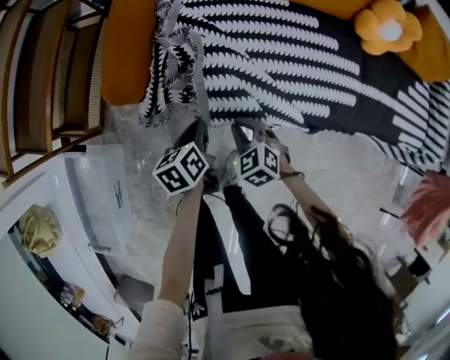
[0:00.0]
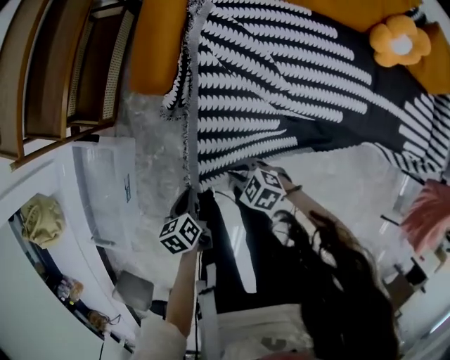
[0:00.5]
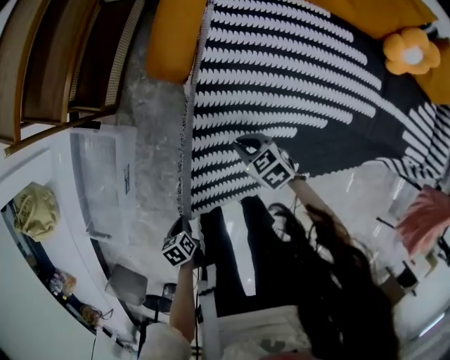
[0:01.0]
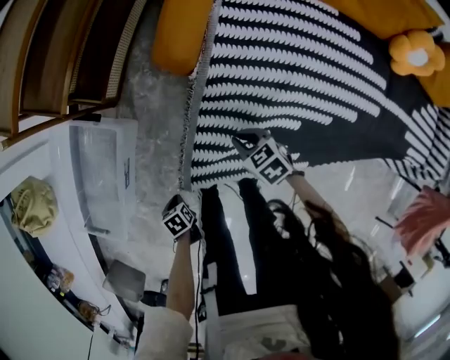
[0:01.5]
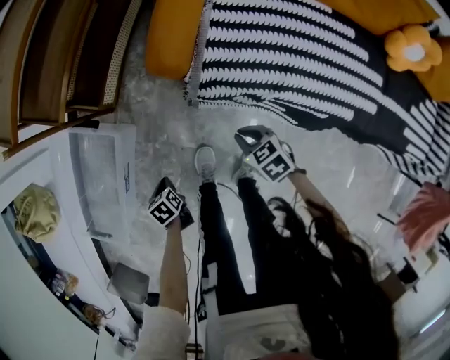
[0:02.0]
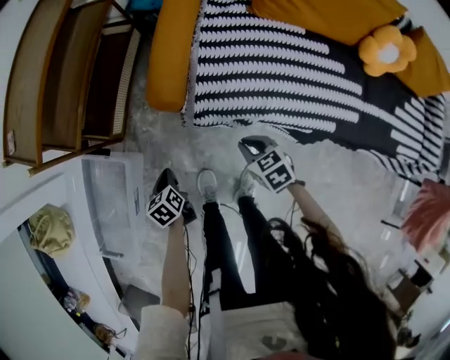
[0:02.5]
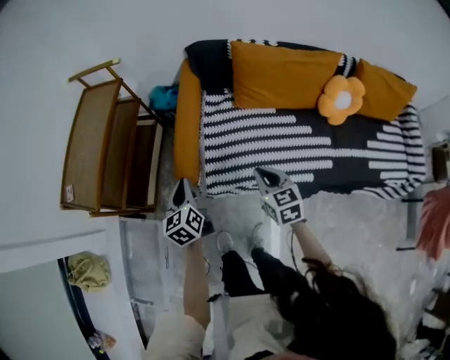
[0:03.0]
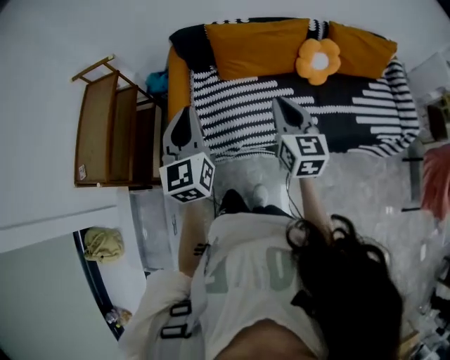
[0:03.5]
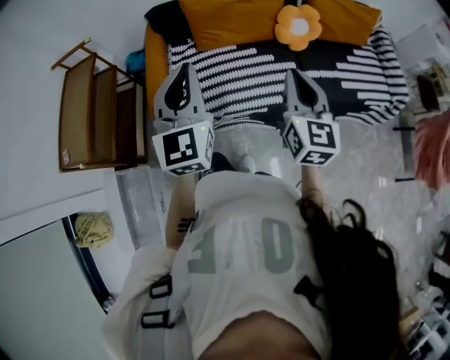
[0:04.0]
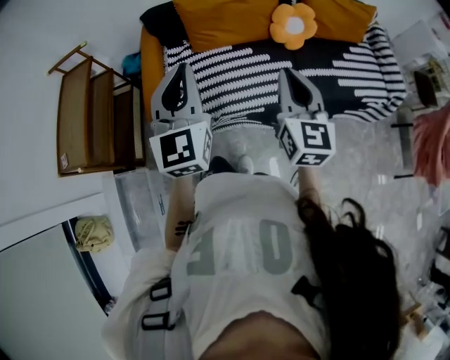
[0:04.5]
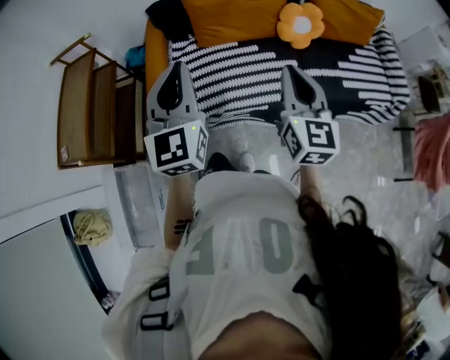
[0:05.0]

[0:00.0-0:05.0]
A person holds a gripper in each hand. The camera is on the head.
0:00.0 to 0:02.5: The right gripper travels upward by some 10 cm, while the left gripper travels downward and back again, about 10 cm each way, and changes its angle by about 20 degrees.
0:02.5 to 0:05.0: The two grippers go approximately 60 cm upward. The left gripper tilts its fingers roughly 60 degrees upward. The right gripper tips its fingers upward by some 50 degrees.

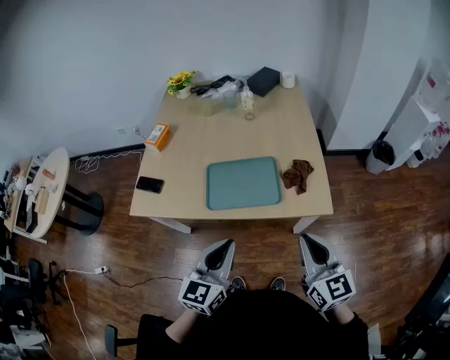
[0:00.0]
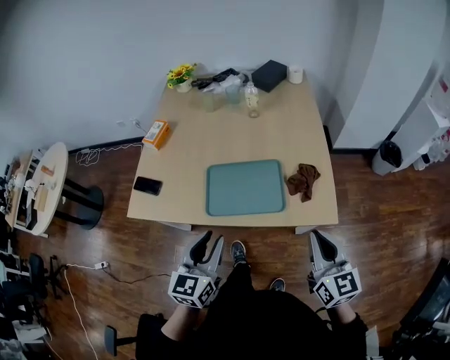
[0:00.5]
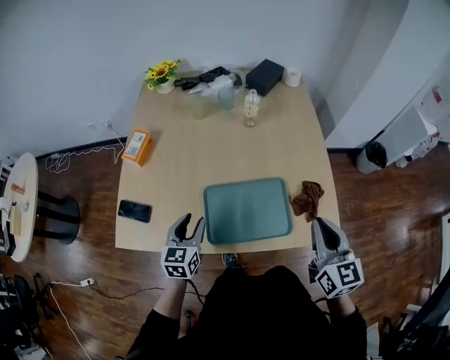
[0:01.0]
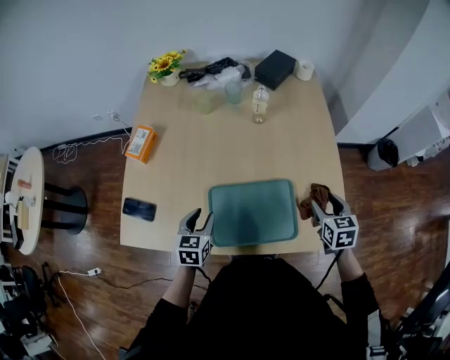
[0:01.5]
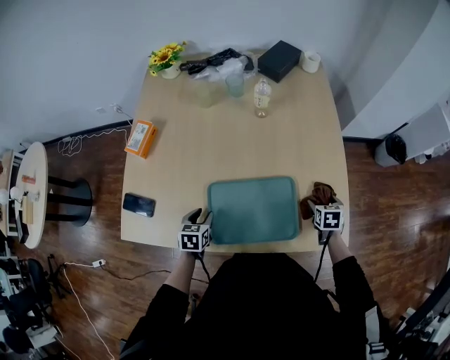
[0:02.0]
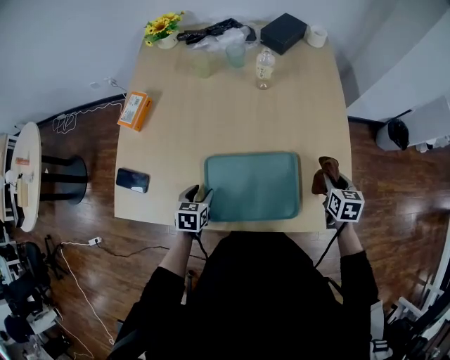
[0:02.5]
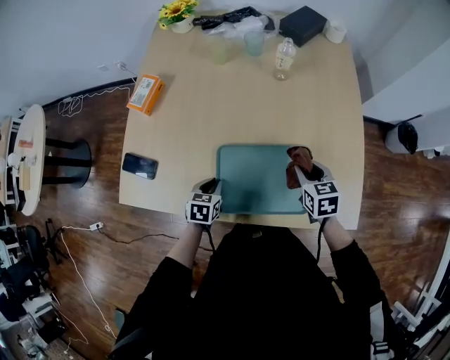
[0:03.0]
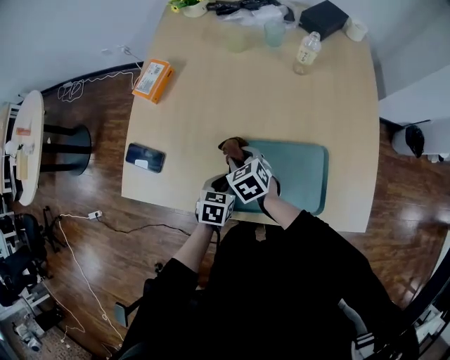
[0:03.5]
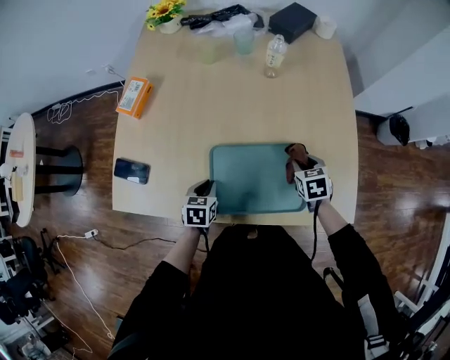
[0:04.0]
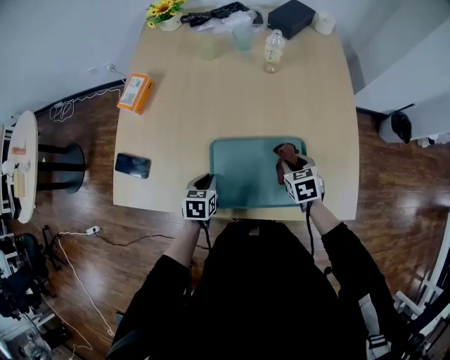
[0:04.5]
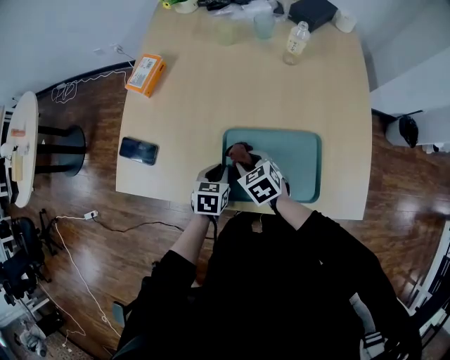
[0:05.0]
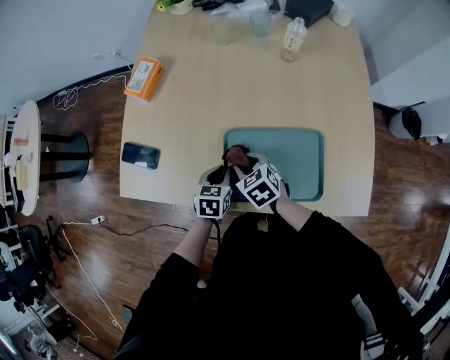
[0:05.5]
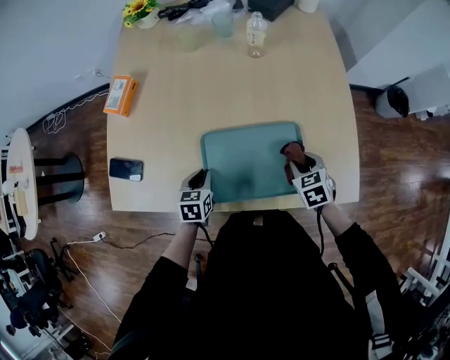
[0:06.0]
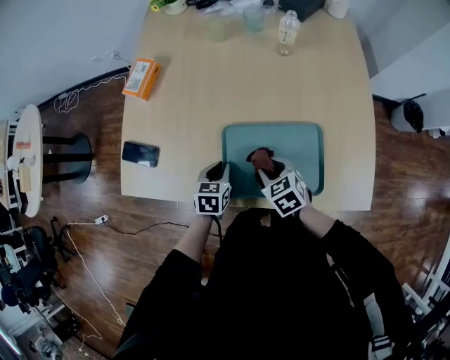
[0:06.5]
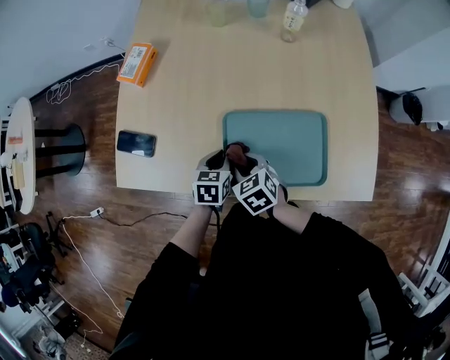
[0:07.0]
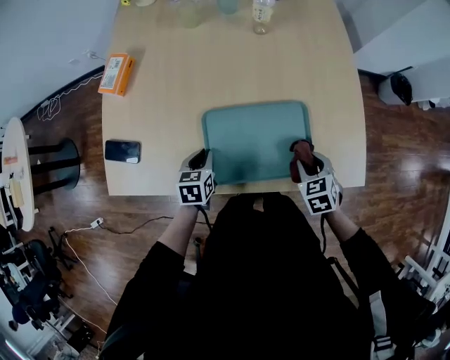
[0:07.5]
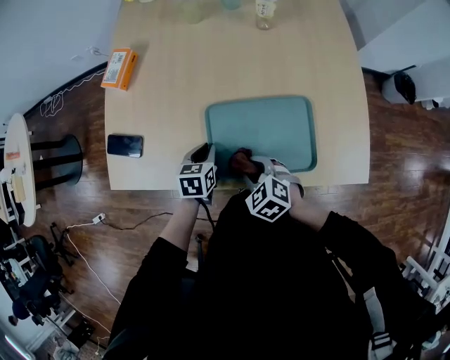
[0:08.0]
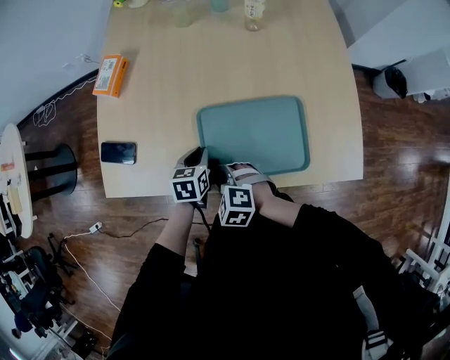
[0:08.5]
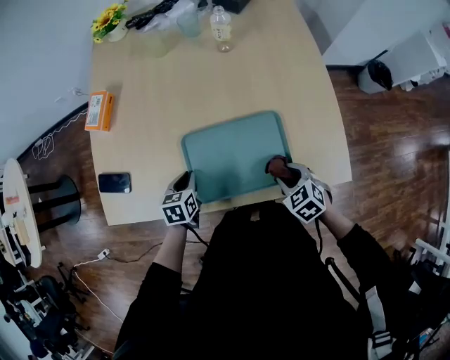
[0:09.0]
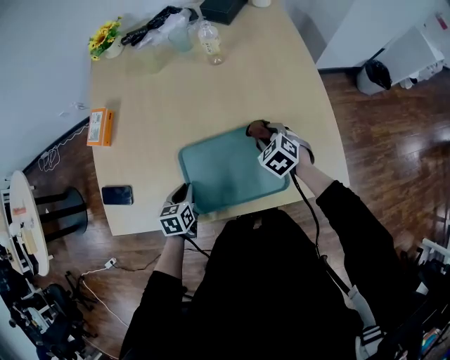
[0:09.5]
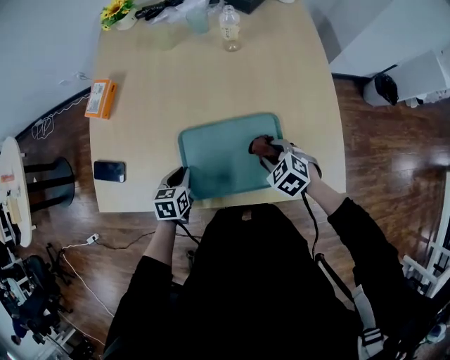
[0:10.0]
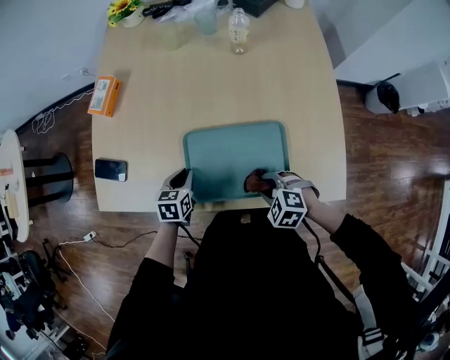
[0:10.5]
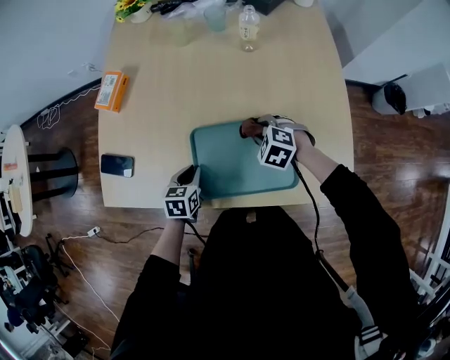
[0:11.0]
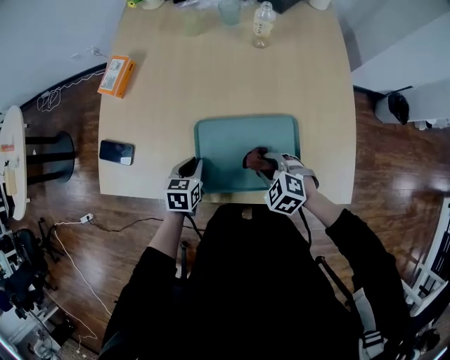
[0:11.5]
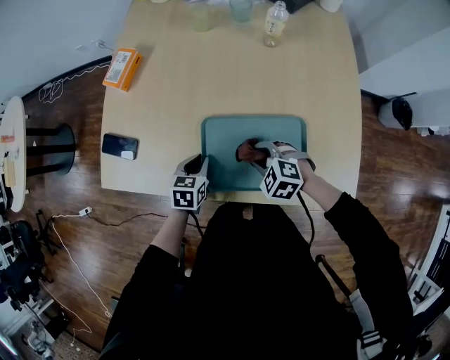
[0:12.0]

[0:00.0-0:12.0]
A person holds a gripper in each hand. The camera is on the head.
0:00.0 to 0:02.0: The left gripper goes some 50 cm forward, downward and to the left, points its fingers some 40 degrees further downward, and opens, while the right gripper travels forward and downward by some 50 cm, tilts its fingers approximately 50 degrees downward, and opens.
0:02.0 to 0:04.0: The left gripper closes its fingers, while the right gripper goes to the left and returns, roughly 40 cm each way, and closes its fingers.
0:04.0 to 0:06.0: The right gripper moves backward, approximately 5 cm, and goes to the left and returns, about 25 cm each way.
0:06.0 to 0:08.0: The right gripper swings left and right, about 25 cm each way, with 2 reversals, and rotates roughly 30 degrees.
0:08.0 to 0:10.0: The right gripper is displaced to the right and forward by roughly 20 cm.
0:10.0 to 0:12.0: The right gripper goes forward and backward, about 15 cm each way, reversing 2 times, and rotates roughly 30 degrees.

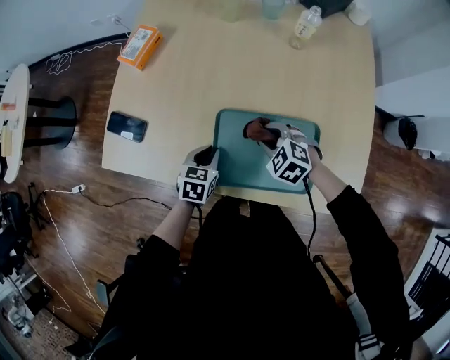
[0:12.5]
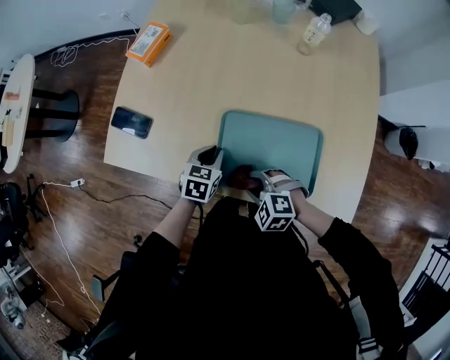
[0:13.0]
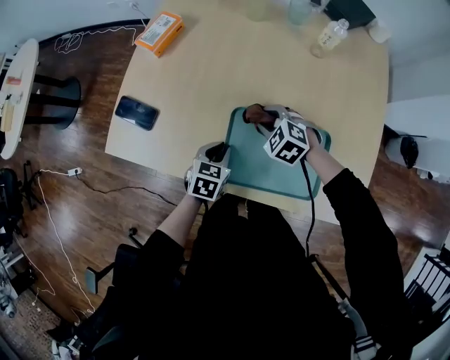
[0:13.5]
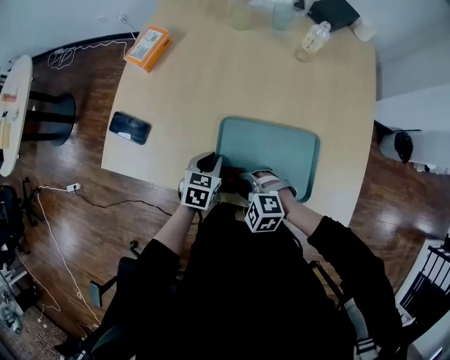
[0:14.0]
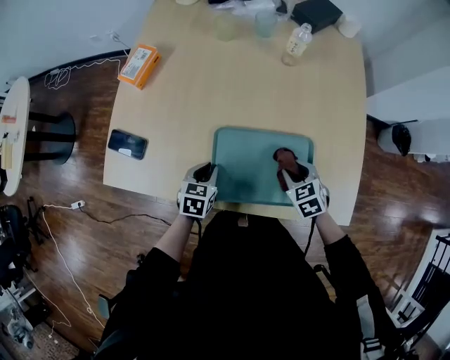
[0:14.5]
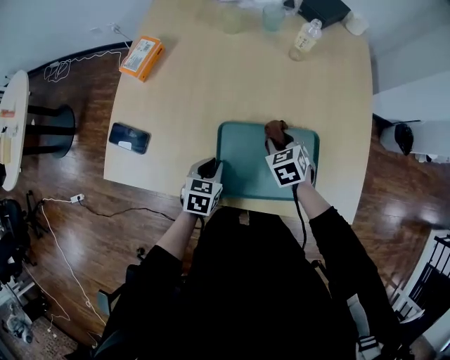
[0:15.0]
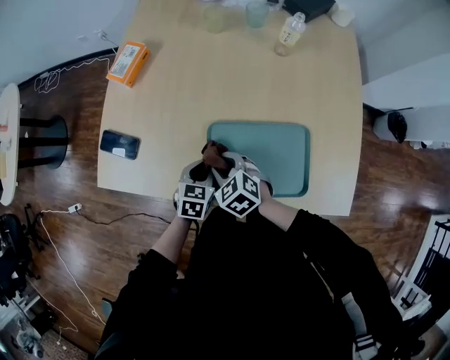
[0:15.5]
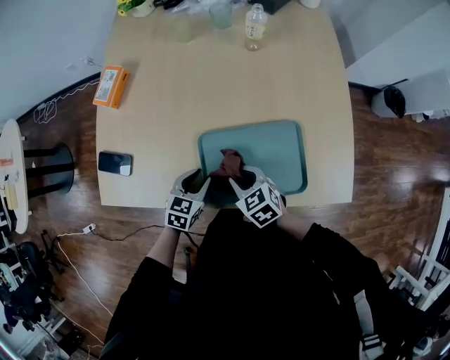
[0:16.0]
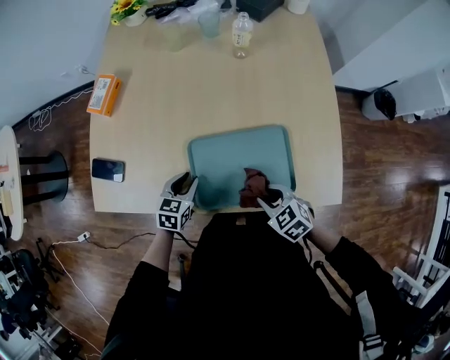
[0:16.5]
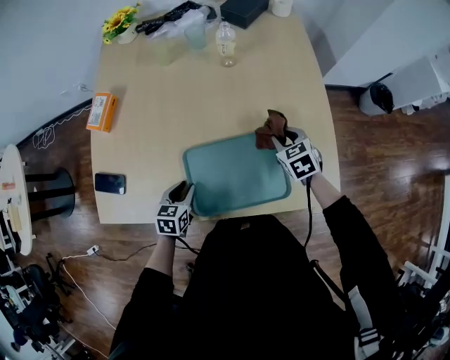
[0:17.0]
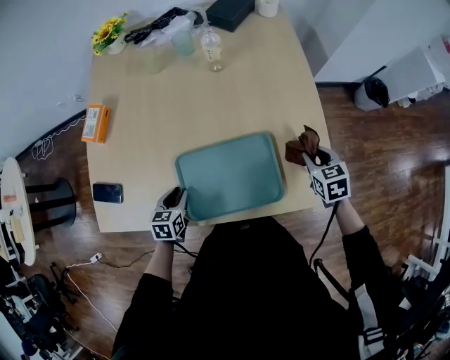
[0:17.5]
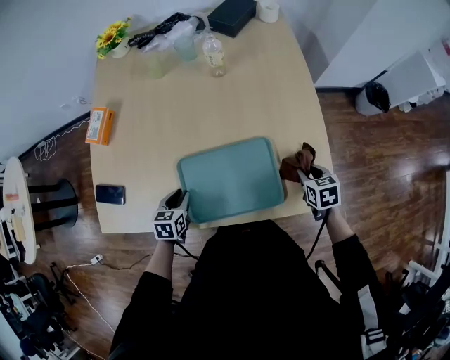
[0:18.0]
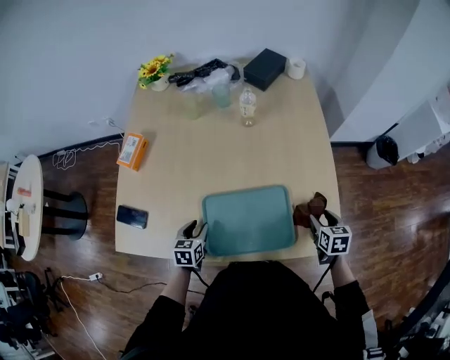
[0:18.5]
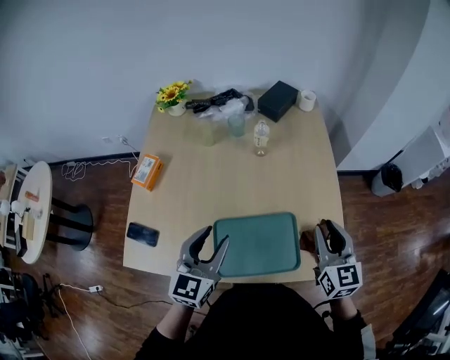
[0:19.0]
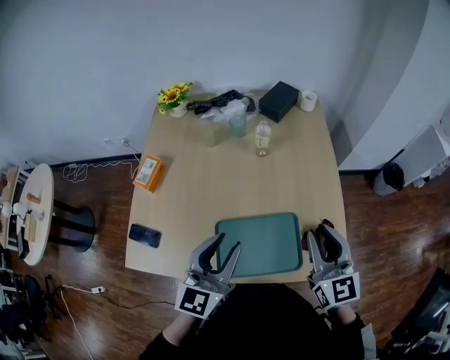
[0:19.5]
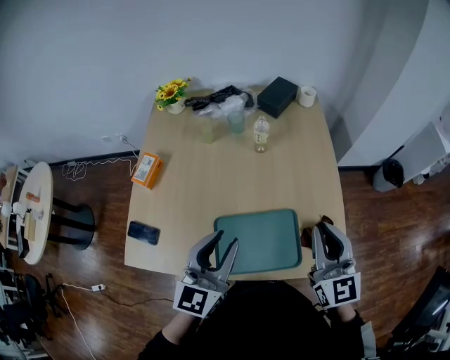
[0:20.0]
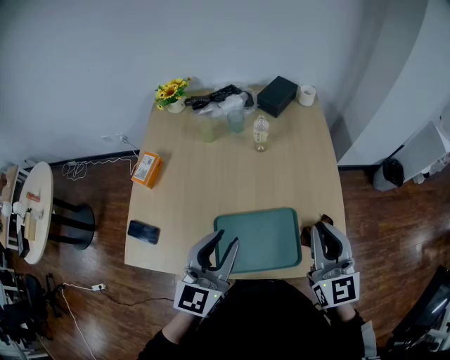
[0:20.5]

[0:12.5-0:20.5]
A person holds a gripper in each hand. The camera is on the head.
0:12.5 to 0:14.5: The right gripper moves left and right over about 20 cm, changing direction 3 times, and turns by some 30 degrees.
0:14.5 to 0:16.5: The right gripper heads backward, covering some 10 cm, and goes to the left and returns, some 25 cm each way.
0:16.5 to 0:18.5: The right gripper is displaced to the right and forward by approximately 25 cm, twists roughly 40 degrees clockwise, seen from behind, and opens up.
0:18.5 to 0:20.5: The right gripper travels upward and to the left by approximately 35 cm, points its fingers about 50 degrees further upward, and closes up. Meanwhile the left gripper is displaced upward by approximately 35 cm, and tilts its fingers about 40 degrees upward.

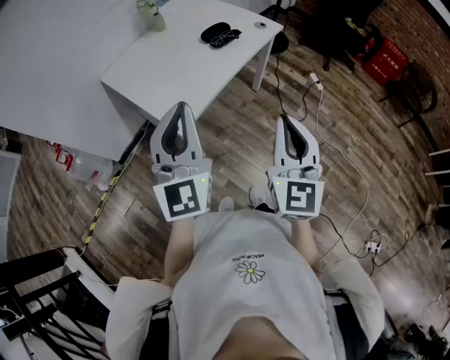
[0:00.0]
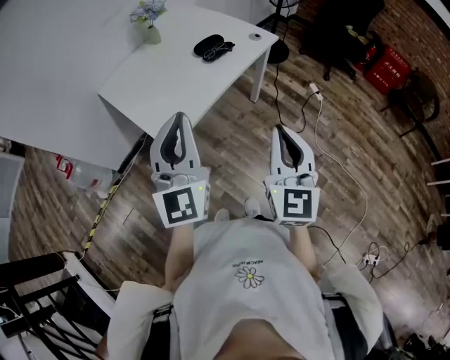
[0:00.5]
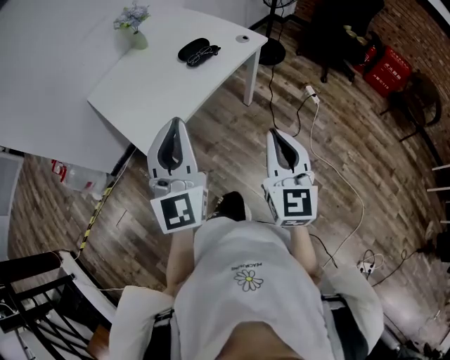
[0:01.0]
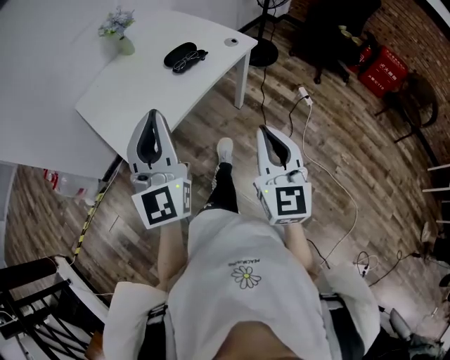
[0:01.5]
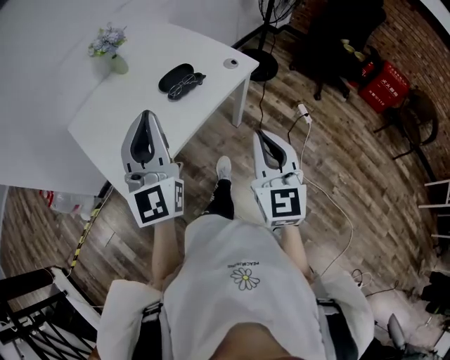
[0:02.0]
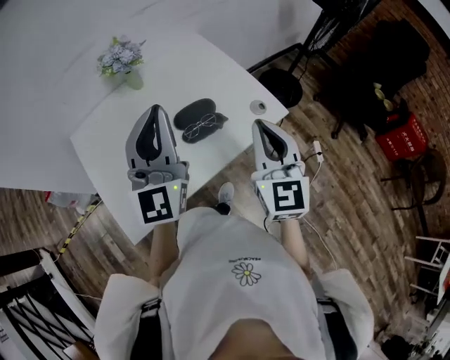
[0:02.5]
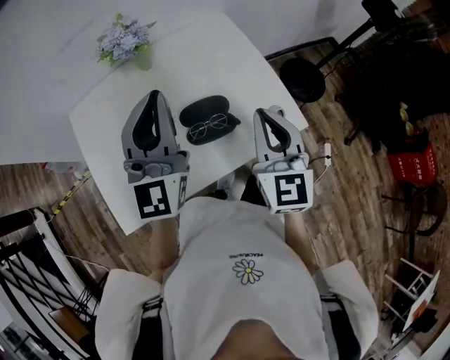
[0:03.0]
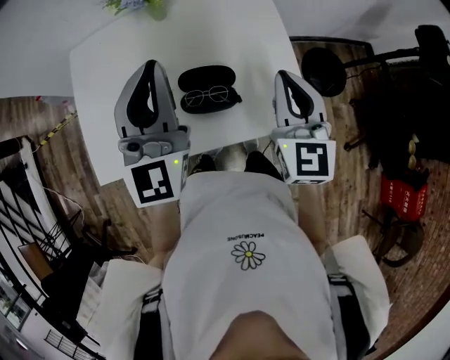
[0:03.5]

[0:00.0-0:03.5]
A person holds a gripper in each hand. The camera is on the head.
0:00.0 to 0:02.0: The grippers both shift forward and to the right by approximately 25 cm.
0:02.0 to 0:03.5: The right gripper ends up approximately 40 cm from where it was, and changes its angle by approximately 30 degrees. Meanwhile the left gripper changes place by about 30 cm, and swivels approximately 30 degrees.
